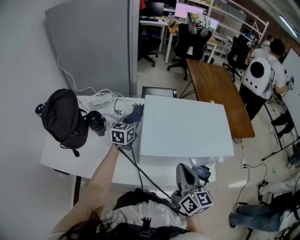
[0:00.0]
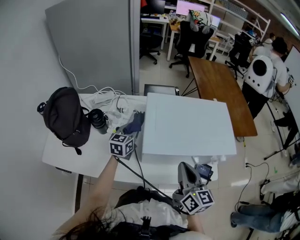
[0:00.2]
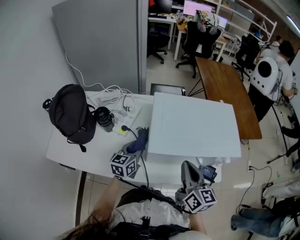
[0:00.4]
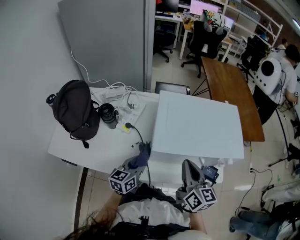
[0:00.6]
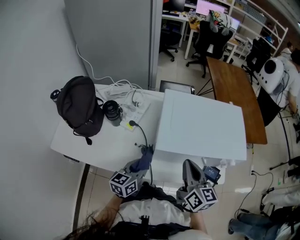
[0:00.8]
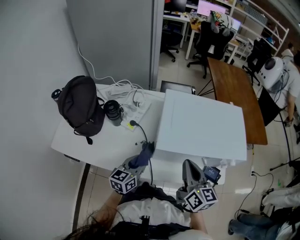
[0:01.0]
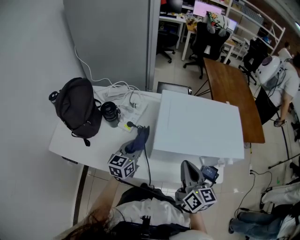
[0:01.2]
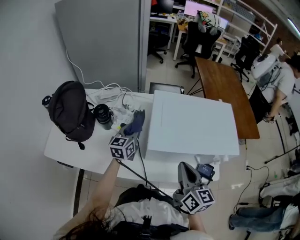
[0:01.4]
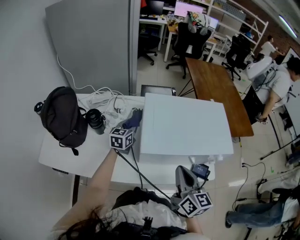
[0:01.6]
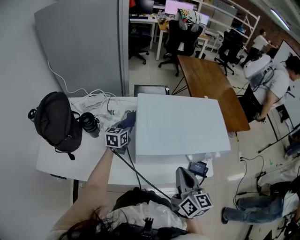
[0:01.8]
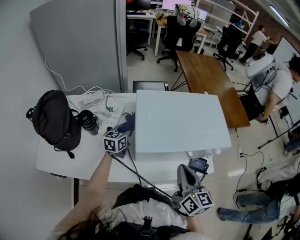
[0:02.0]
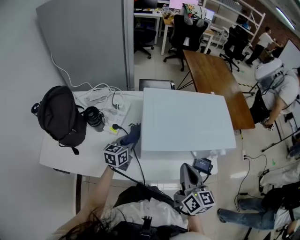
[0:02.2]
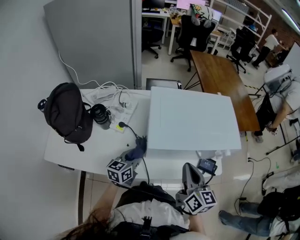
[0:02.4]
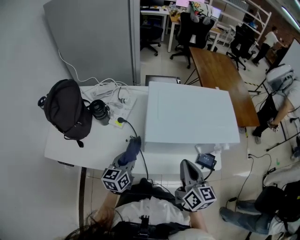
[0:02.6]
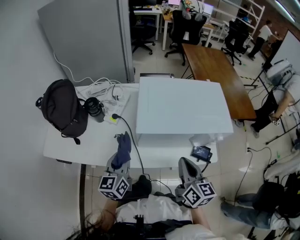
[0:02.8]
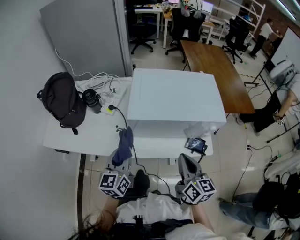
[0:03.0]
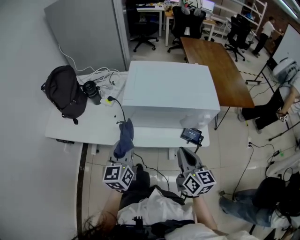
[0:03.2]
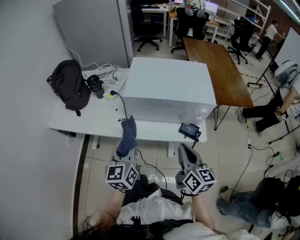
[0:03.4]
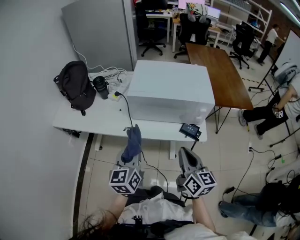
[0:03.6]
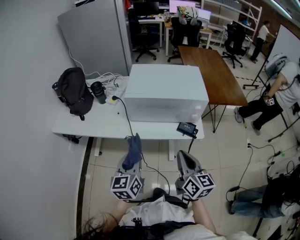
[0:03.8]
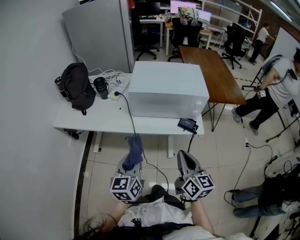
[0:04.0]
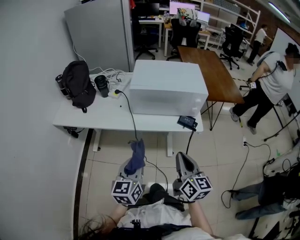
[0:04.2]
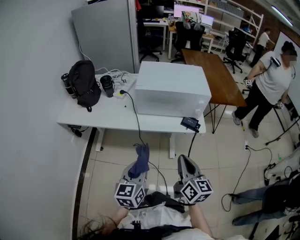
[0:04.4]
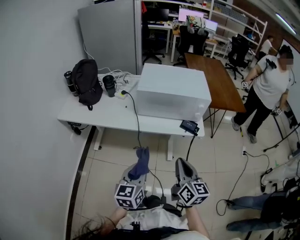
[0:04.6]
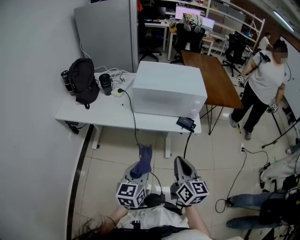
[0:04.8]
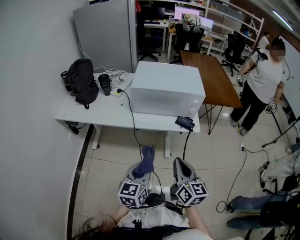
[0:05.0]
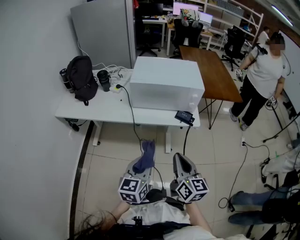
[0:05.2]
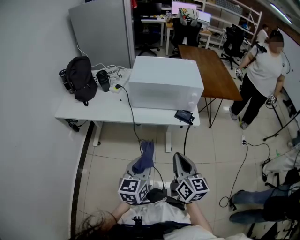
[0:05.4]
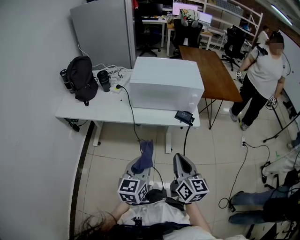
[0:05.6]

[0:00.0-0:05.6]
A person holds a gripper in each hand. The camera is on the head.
0.0 to 1.4 s: The left gripper travels backward and back again, about 25 cm each way.
1.4 to 2.8 s: The left gripper travels backward by about 20 cm; the right gripper moves some 5 cm.
2.8 to 4.2 s: The two grippers go roughly 30 cm backward.
4.2 to 5.6 s: The left gripper is displaced to the right and backward by approximately 10 cm; the right gripper shifts roughly 5 cm backward.

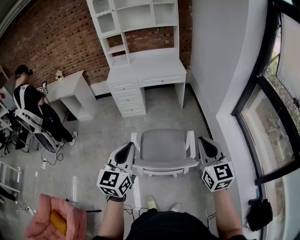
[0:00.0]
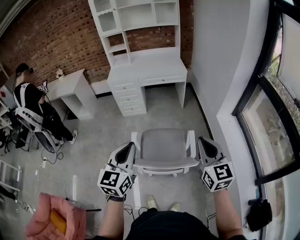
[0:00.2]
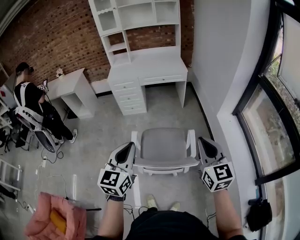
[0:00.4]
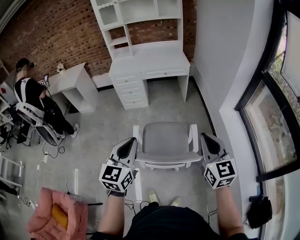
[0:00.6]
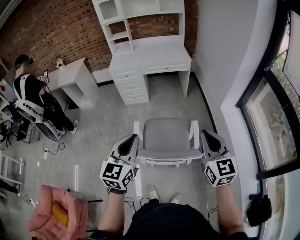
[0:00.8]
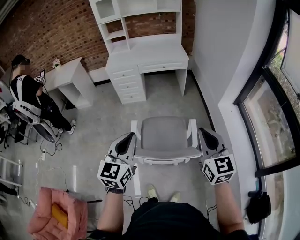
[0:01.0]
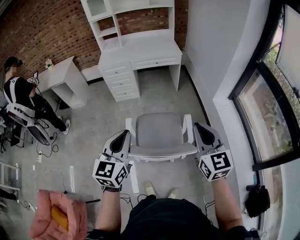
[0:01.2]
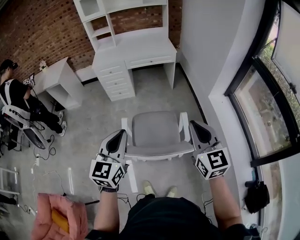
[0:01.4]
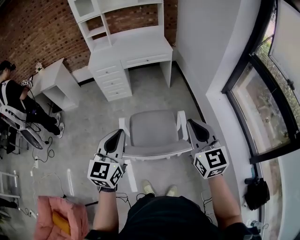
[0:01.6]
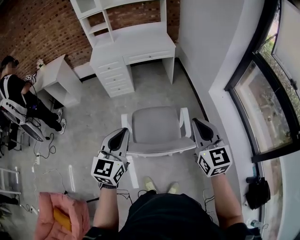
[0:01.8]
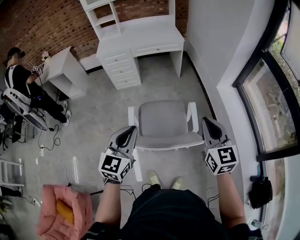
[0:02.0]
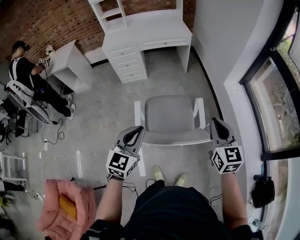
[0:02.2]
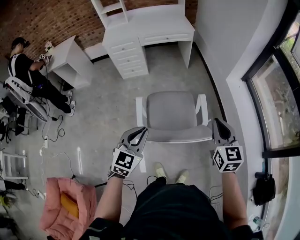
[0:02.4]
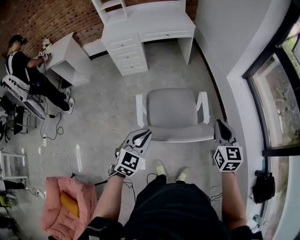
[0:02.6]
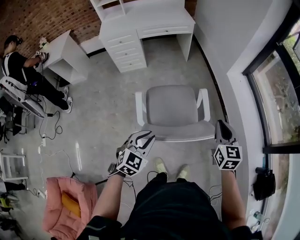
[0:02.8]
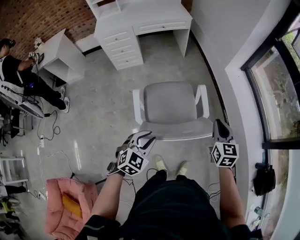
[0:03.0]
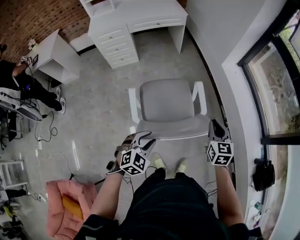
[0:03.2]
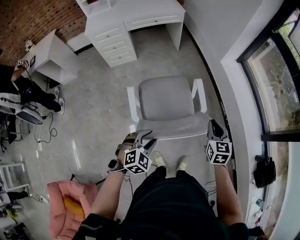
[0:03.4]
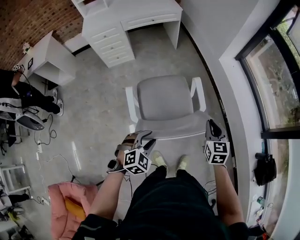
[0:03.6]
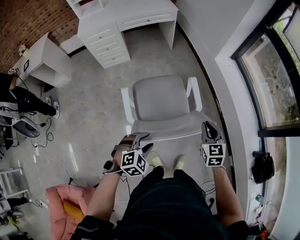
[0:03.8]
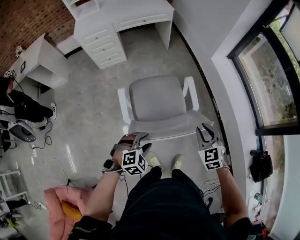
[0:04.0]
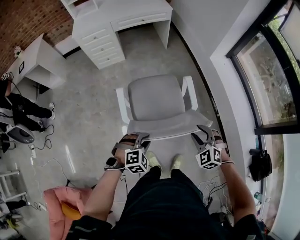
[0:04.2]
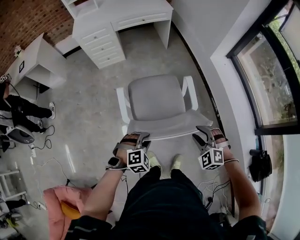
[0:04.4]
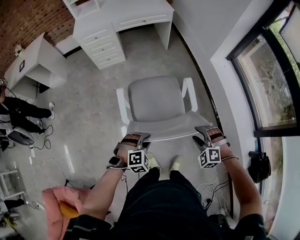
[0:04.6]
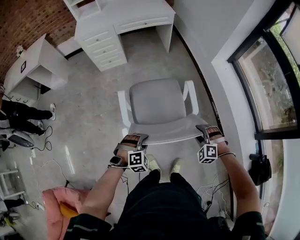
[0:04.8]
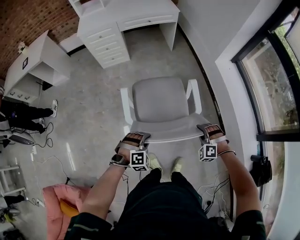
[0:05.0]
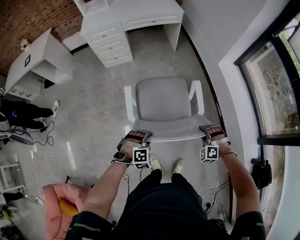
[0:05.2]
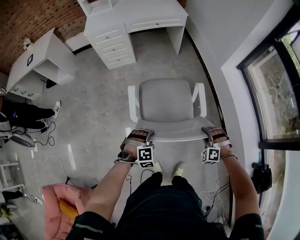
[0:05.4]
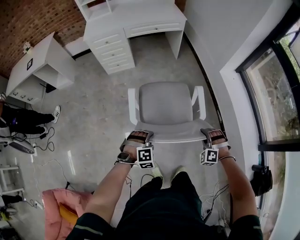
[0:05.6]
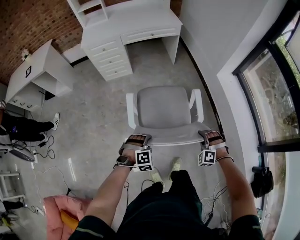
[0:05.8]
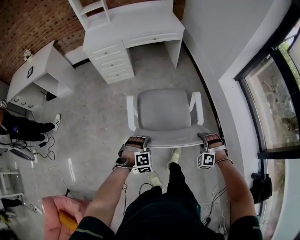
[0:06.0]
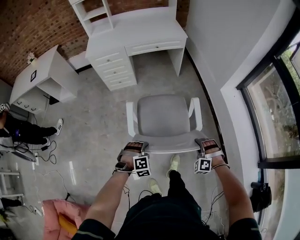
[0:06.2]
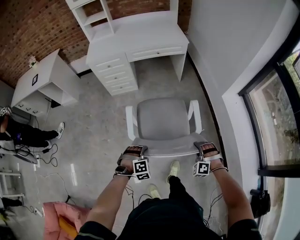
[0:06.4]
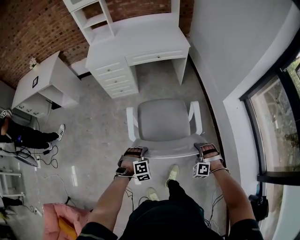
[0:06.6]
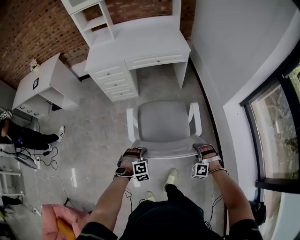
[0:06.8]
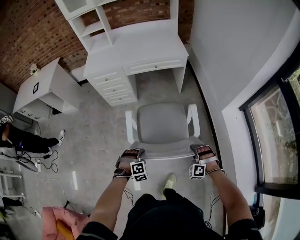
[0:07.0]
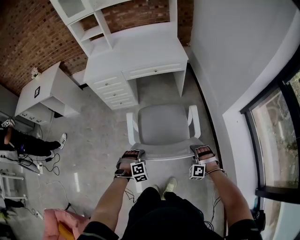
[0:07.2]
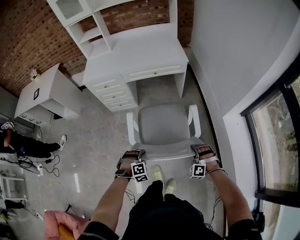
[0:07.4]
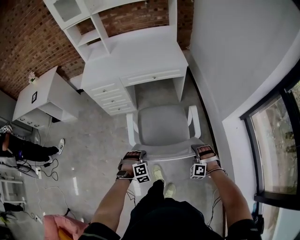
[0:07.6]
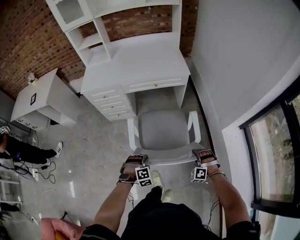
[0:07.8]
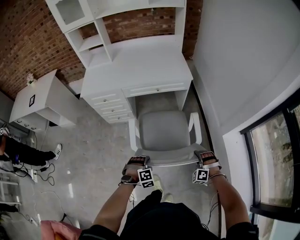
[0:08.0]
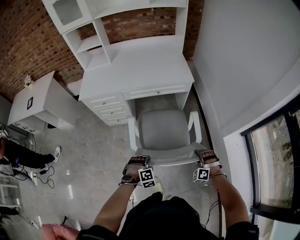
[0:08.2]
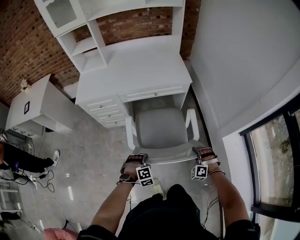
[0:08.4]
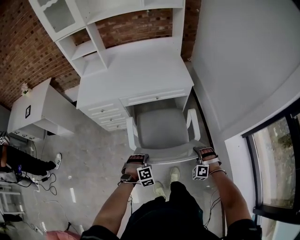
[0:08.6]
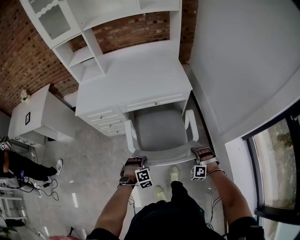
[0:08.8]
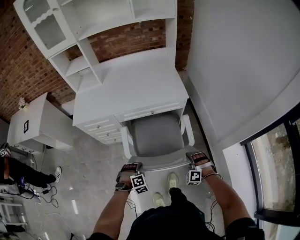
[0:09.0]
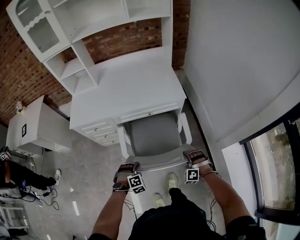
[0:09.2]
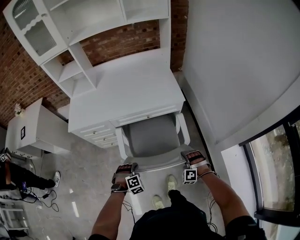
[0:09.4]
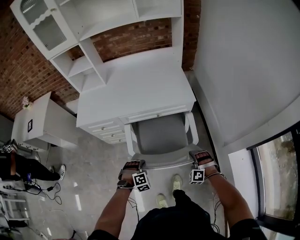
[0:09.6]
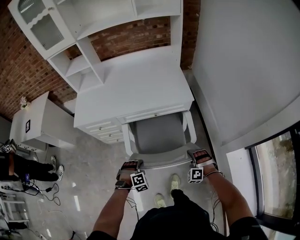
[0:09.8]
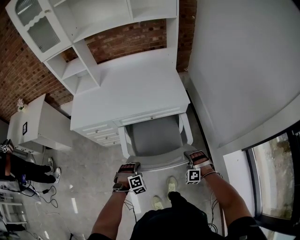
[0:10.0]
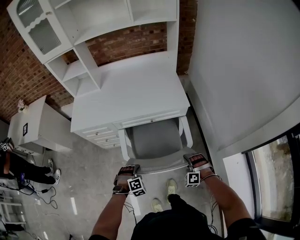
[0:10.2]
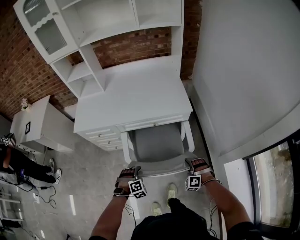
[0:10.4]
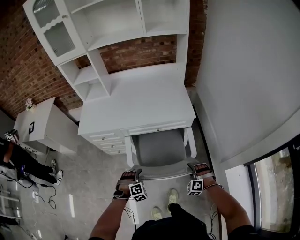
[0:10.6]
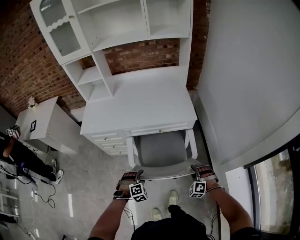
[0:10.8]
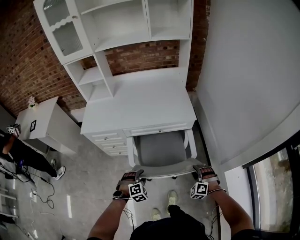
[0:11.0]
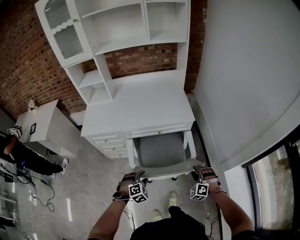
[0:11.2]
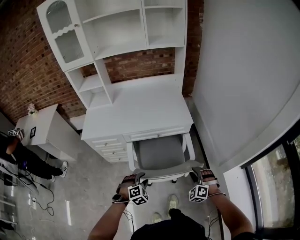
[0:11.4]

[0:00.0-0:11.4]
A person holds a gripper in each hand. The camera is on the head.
0.0 to 1.4 s: The grippers move only a little.
1.4 to 2.8 s: Both grippers move downward, some 20 cm. The right gripper turns by some 20 degrees. The left gripper changes its angle by approximately 40 degrees.
2.8 to 4.2 s: The left gripper goes roughly 10 cm downward, swivels roughly 40 degrees, and opens, then closes once more. Meanwhile the right gripper heads downward and backward, covering some 15 cm, rolls counterclockwise, seen from behind, by about 50 degrees, and opens its fingers.
4.2 to 5.6 s: The right gripper moves downward and forward, approximately 10 cm, rotates about 40 degrees, and closes, while the left gripper moves forward and downward, roughly 10 cm.
5.6 to 7.2 s: The grippers both shift forward by roughly 25 cm.
7.2 to 8.6 s: The grippers both shift forward by some 25 cm.
8.6 to 10.0 s: The grippers both shift forward by approximately 10 cm.
10.0 to 11.4 s: The left gripper is displaced upward by some 10 cm, and opens its fingers, while the right gripper goes approximately 10 cm upward and backward, and opens its fingers.

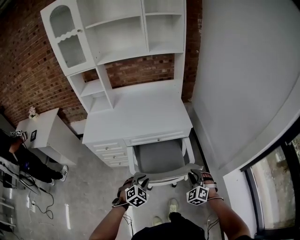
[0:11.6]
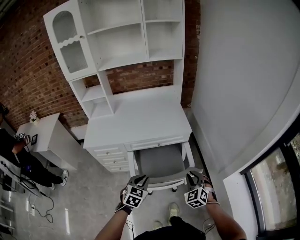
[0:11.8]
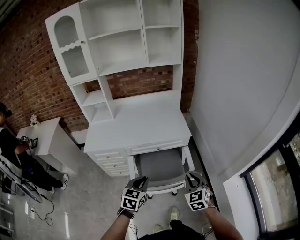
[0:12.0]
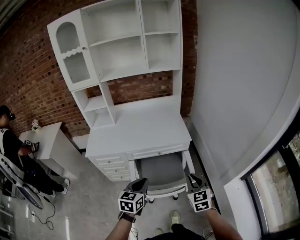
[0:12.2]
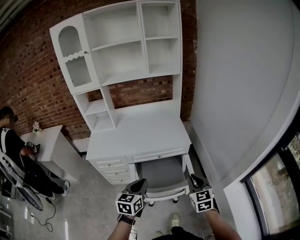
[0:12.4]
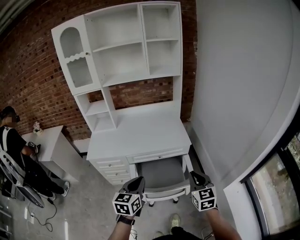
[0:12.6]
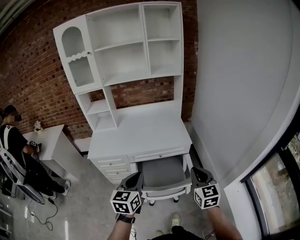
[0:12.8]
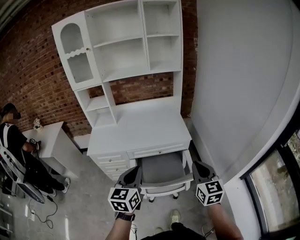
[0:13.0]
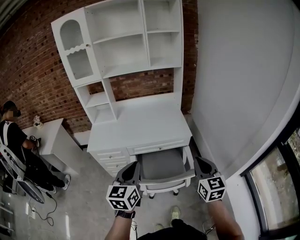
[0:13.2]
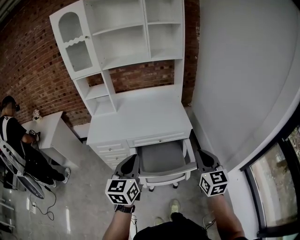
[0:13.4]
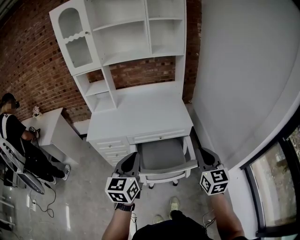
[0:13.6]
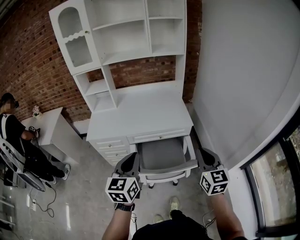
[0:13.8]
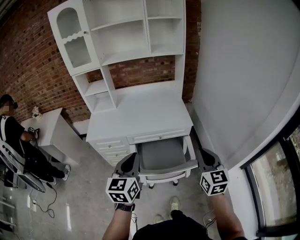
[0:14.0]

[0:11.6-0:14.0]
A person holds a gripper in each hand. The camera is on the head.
11.6 to 12.8 s: The two grippers go roughly 25 cm upward. The right gripper rolls clockwise, seen from behind, by approximately 50 degrees, while the left gripper tips its fingers upward by about 30 degrees.
12.8 to 14.0 s: The grippers make only small movements.

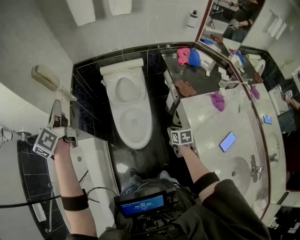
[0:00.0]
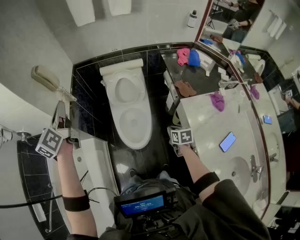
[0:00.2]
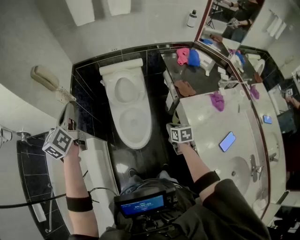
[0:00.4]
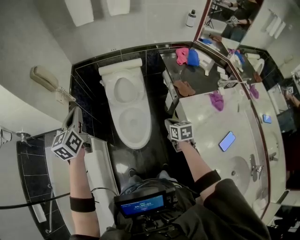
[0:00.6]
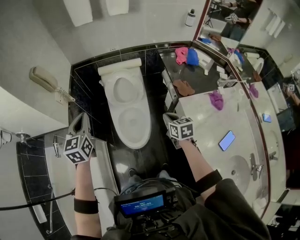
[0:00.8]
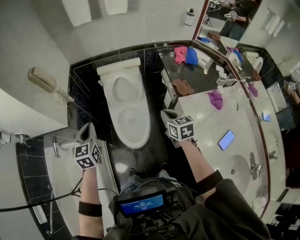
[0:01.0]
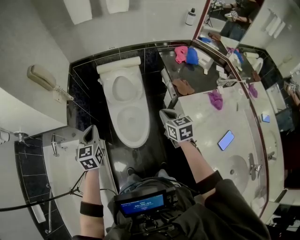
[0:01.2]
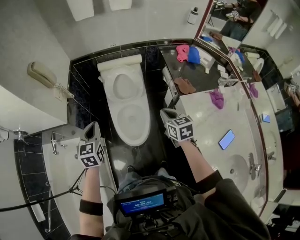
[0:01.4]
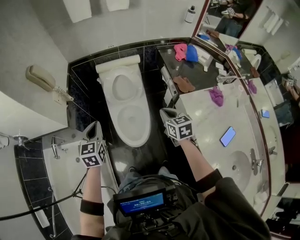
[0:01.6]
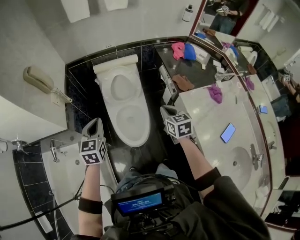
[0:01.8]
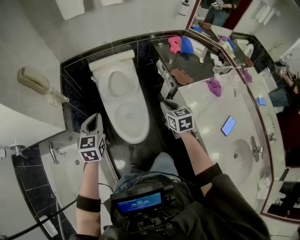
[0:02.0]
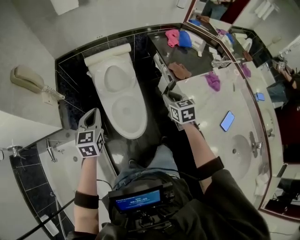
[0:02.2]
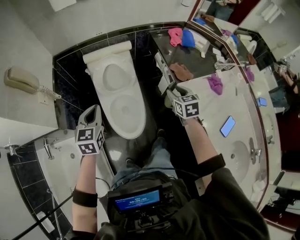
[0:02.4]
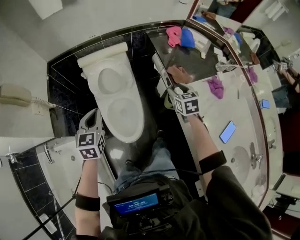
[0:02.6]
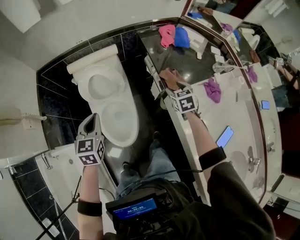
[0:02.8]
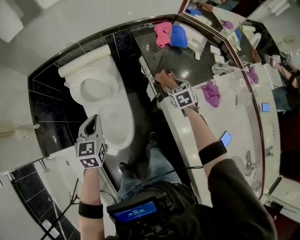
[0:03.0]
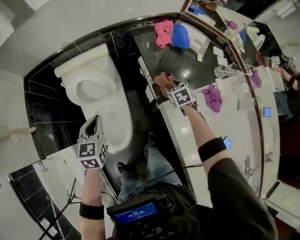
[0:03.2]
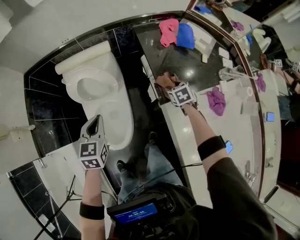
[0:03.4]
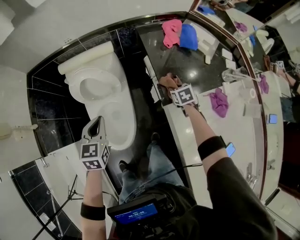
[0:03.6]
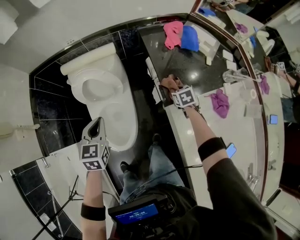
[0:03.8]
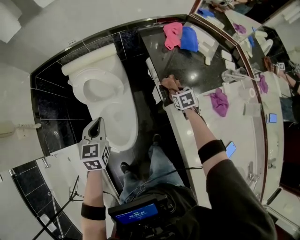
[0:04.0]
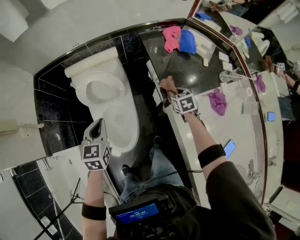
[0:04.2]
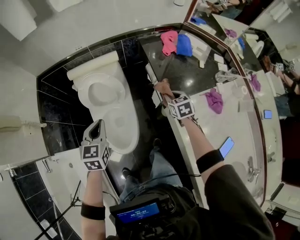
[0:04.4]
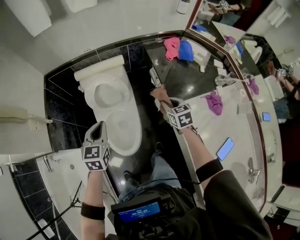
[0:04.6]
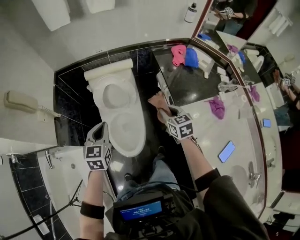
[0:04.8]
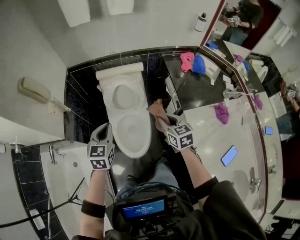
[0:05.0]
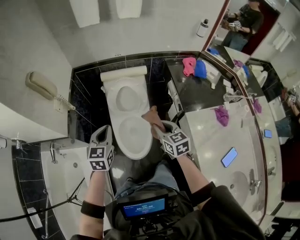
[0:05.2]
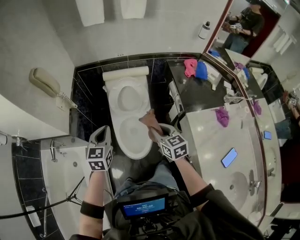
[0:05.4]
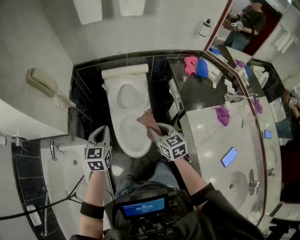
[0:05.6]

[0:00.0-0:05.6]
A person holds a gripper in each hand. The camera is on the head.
0.0 to 1.4 s: The right gripper goes approximately 15 cm upward and forward, and swivels about 20 degrees; the left gripper goes about 20 cm downward, and changes its angle by approximately 40 degrees.
1.4 to 2.8 s: The right gripper heads to the right, forward and downward, covering some 30 cm, turns by approximately 20 degrees, and opens. Meanwhile the left gripper moves forward and to the right, about 20 cm.
2.8 to 4.2 s: The right gripper is displaced downward and forward by some 10 cm, and closes up.
4.2 to 5.6 s: The right gripper shifts about 40 cm to the left, upward and backward, and changes its angle by roughly 30 degrees. The left gripper travels to the left, backward and upward by roughly 20 cm.
